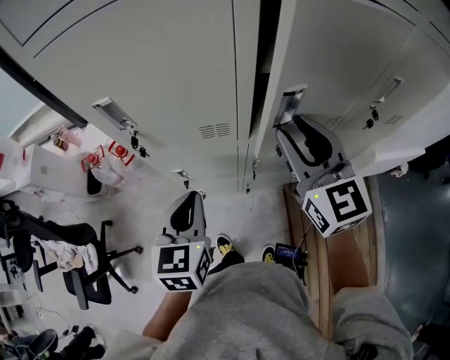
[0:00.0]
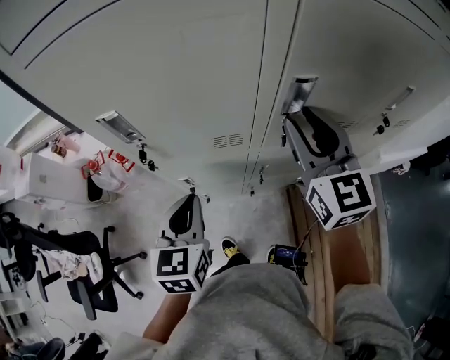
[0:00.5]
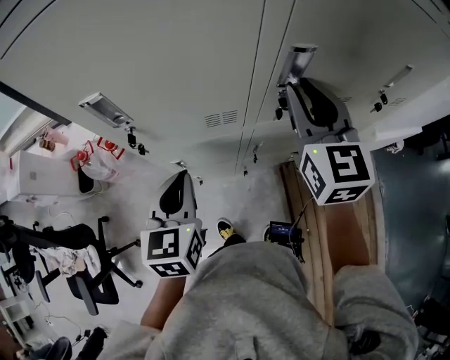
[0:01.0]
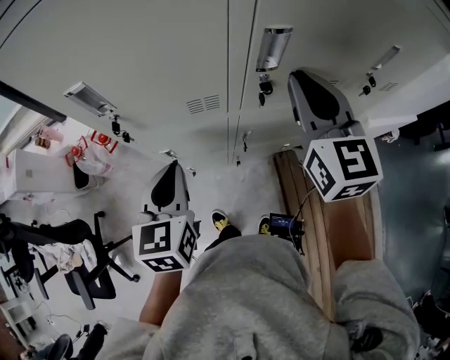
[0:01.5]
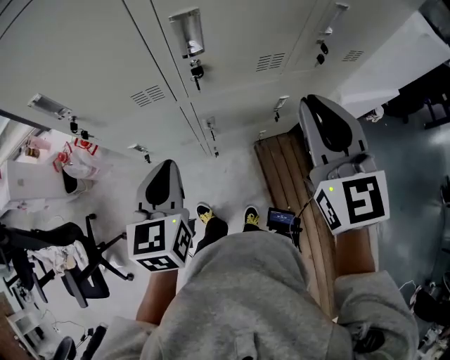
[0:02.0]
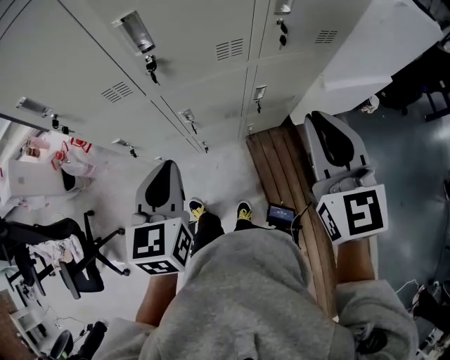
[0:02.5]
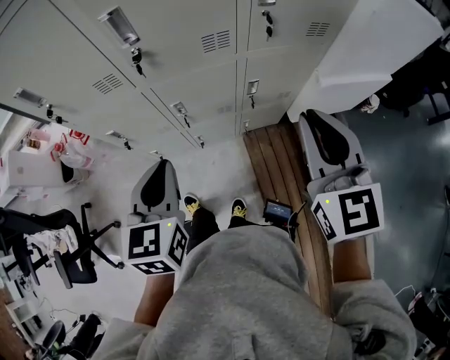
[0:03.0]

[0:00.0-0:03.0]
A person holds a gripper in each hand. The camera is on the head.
0:00.0 to 0:01.5: The right gripper closes up.
0:01.5 to 0:03.0: Both grippers travel together to the right and backward, about 30 cm.

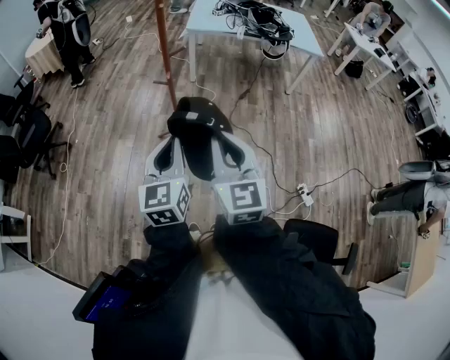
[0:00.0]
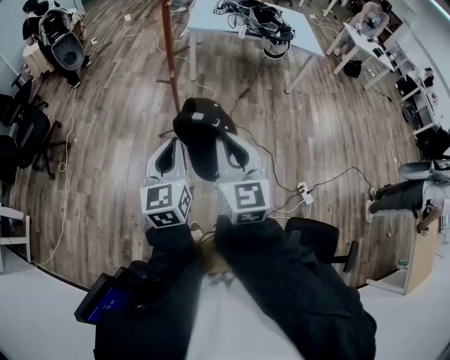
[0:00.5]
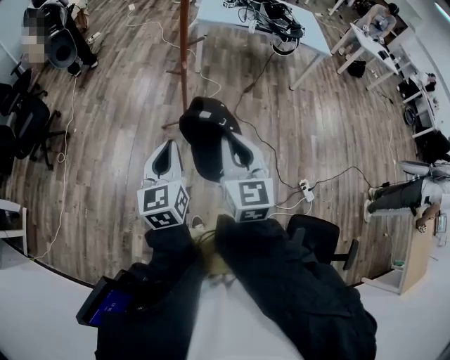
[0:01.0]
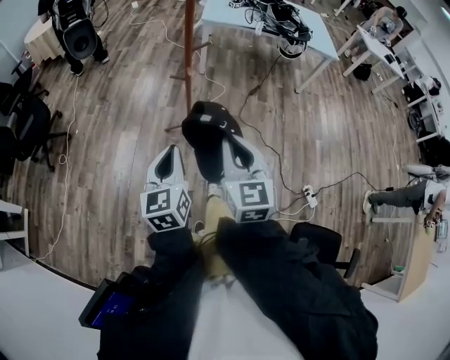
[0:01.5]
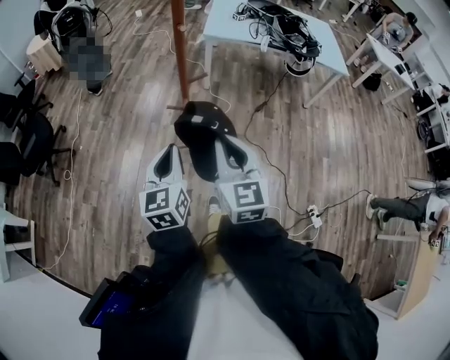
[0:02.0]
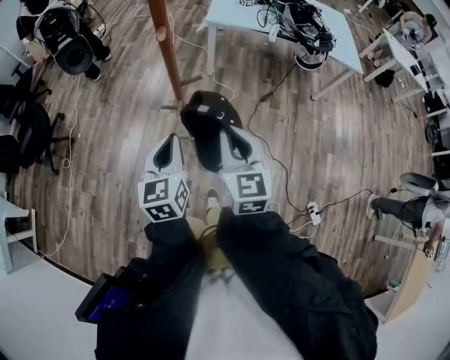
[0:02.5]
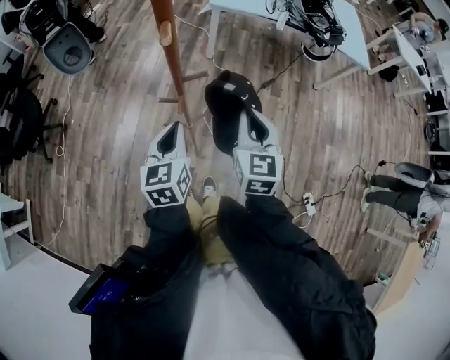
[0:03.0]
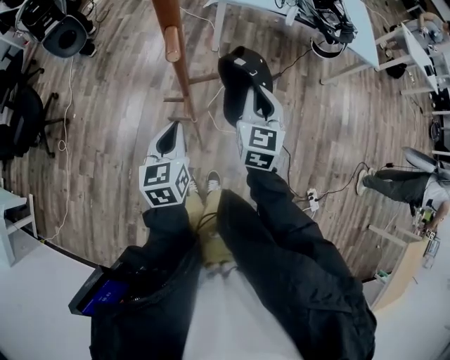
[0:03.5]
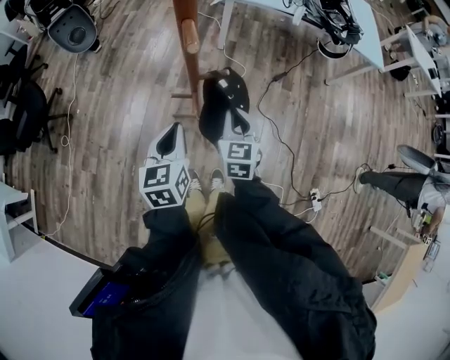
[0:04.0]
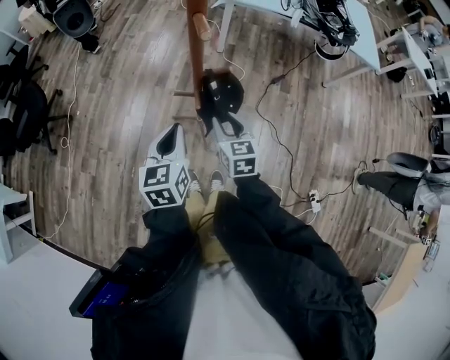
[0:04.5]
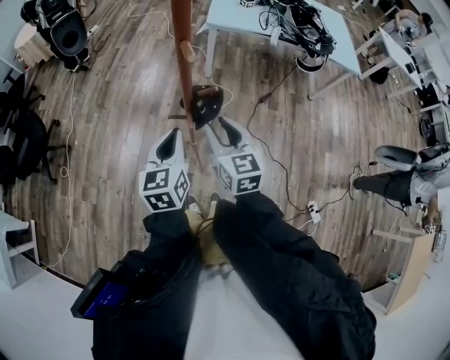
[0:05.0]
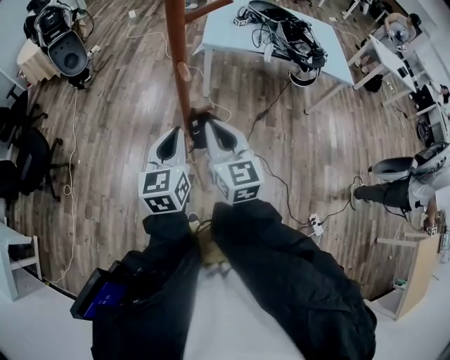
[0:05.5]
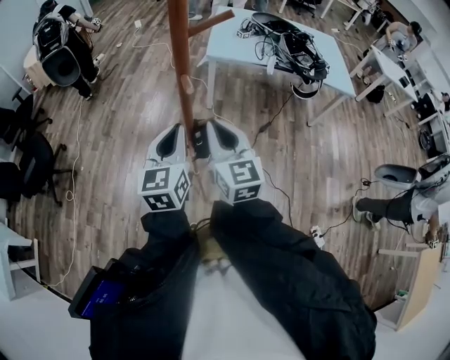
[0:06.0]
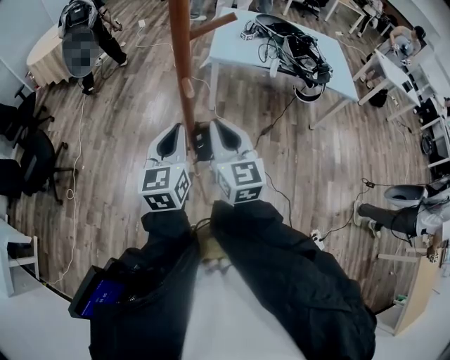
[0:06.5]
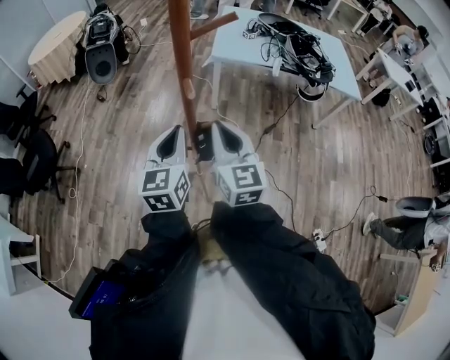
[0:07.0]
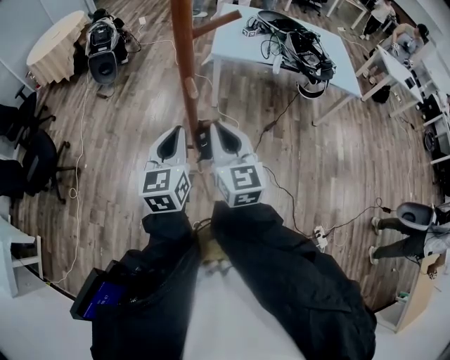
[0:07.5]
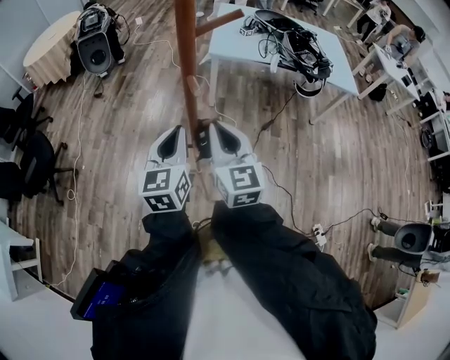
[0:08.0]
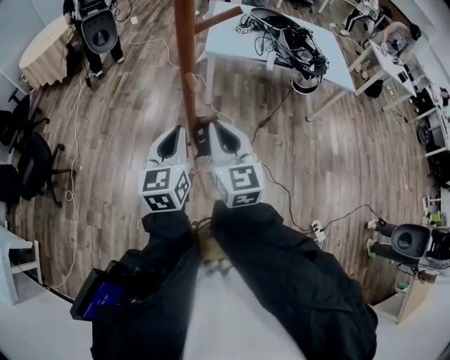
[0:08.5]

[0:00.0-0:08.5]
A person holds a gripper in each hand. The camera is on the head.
0:00.0 to 0:02.0: The grippers both shift forward by some 25 cm.
0:02.0 to 0:04.0: The left gripper heads forward and downward, covering roughly 20 cm, while the right gripper is displaced forward and downward by approximately 25 cm, and swivels about 20 degrees.
0:04.0 to 0:06.5: The grippers both shift upward by approximately 20 cm. The right gripper rotates approximately 30 degrees, and opens and closes again. The left gripper turns by some 20 degrees.
0:06.5 to 0:08.5: The grippers move only a little.

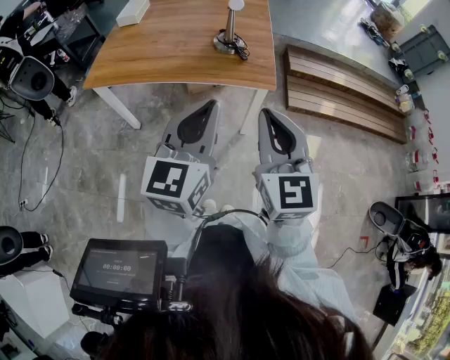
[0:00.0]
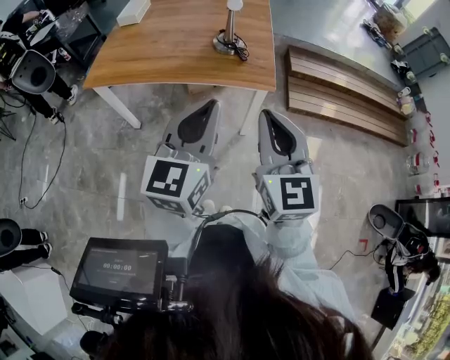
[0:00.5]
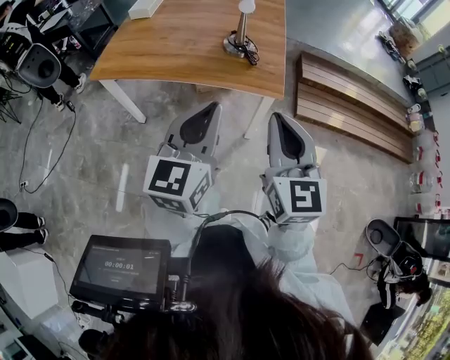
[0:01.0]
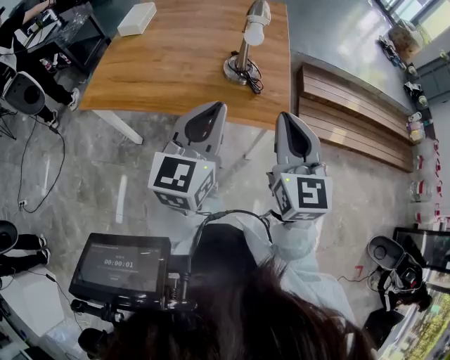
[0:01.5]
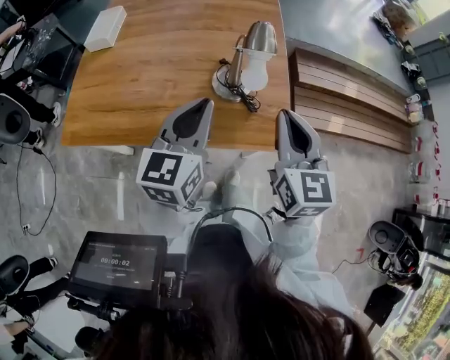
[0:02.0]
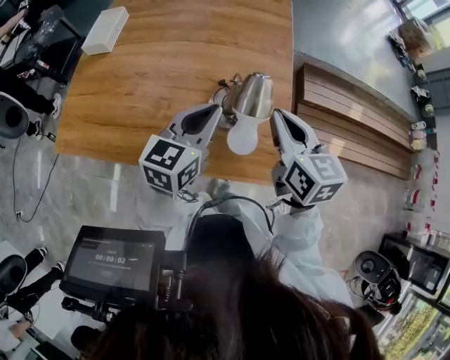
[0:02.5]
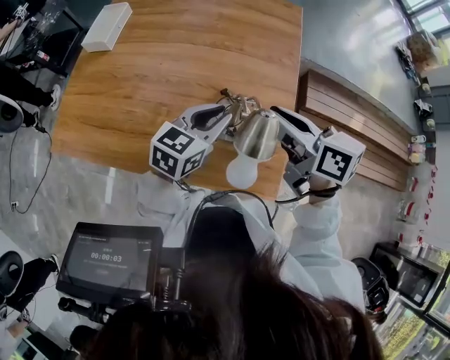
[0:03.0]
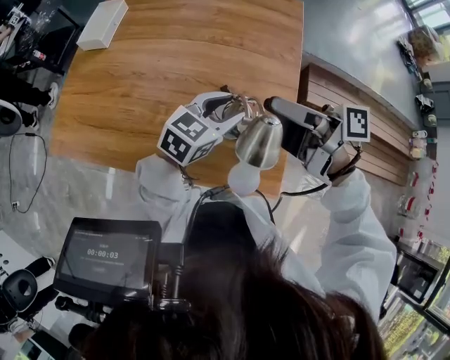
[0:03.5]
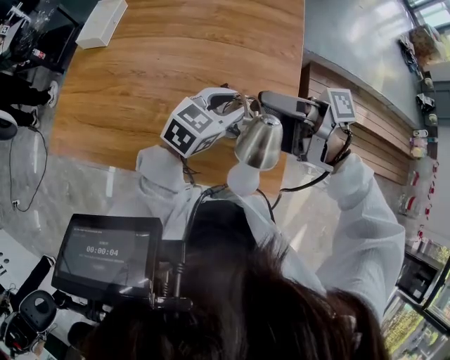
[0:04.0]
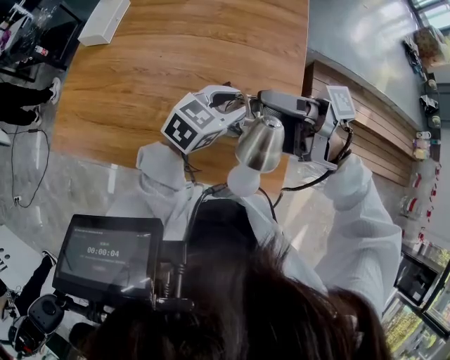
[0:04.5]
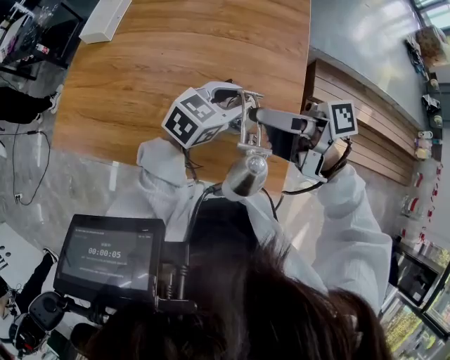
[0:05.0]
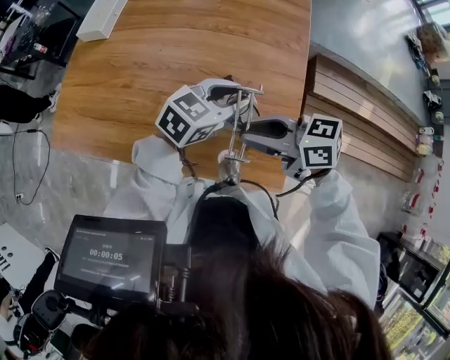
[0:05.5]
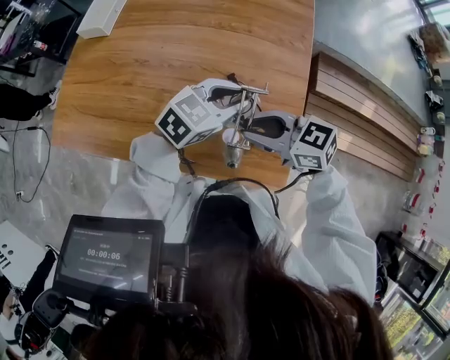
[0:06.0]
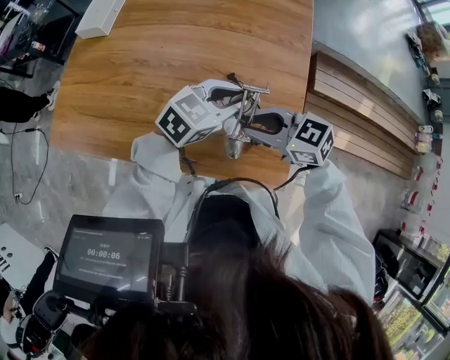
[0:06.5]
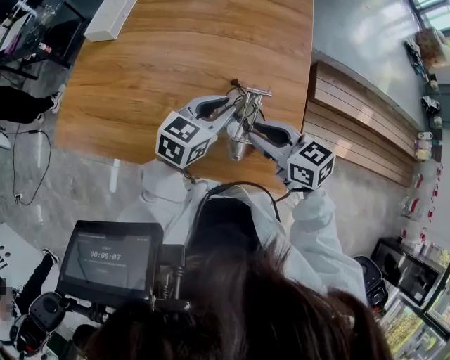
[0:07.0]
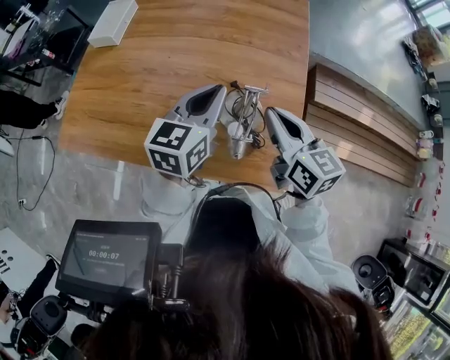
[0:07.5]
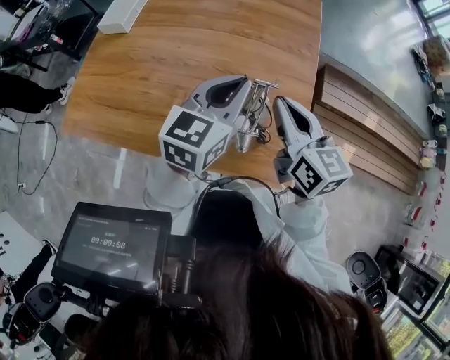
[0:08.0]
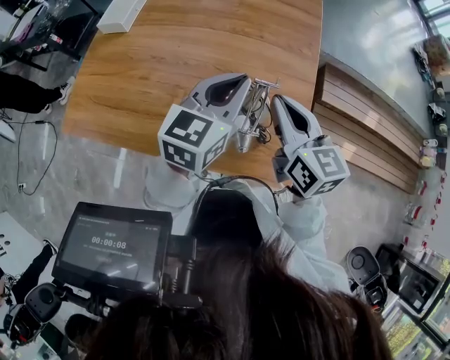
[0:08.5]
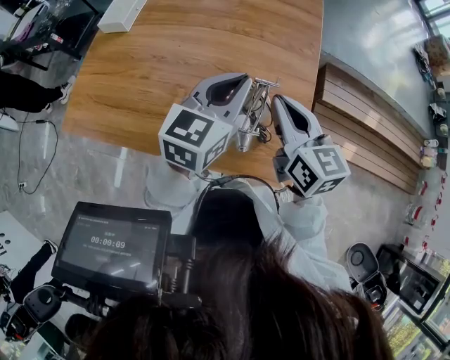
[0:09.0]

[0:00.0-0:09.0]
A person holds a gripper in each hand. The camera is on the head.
0:00.0 to 0:02.0: Both grippers travel together forward, some 40 cm.
0:02.0 to 0:04.5: The right gripper changes place by roughly 20 cm, turns by about 110 degrees, and opens its fingers. The left gripper ends up roughly 25 cm from where it was, changes its angle by about 30 degrees, and opens its fingers.
0:04.5 to 0:07.0: The right gripper shifts about 15 cm downward, and rotates around the line of its fingers by approximately 60 degrees, counterclockwise from behind.
0:07.0 to 0:09.0: The right gripper shifts about 10 cm upward and forward, turns by approximately 30 degrees, and closes up, while the left gripper goes some 10 cm upward.

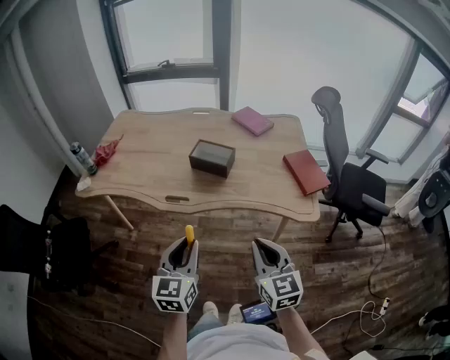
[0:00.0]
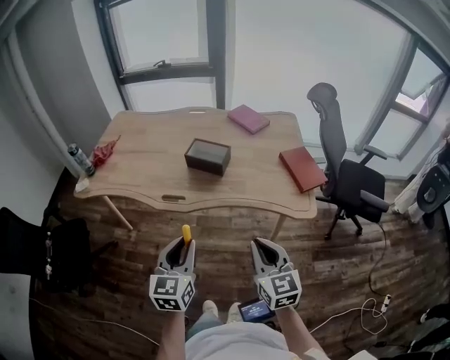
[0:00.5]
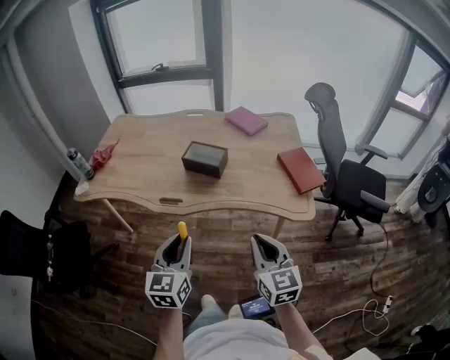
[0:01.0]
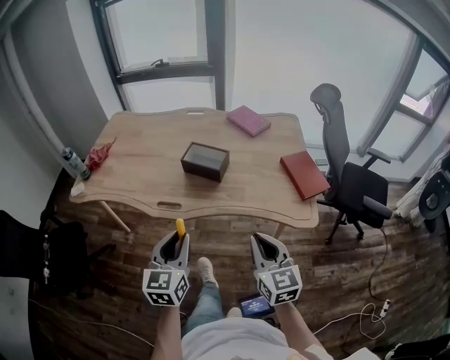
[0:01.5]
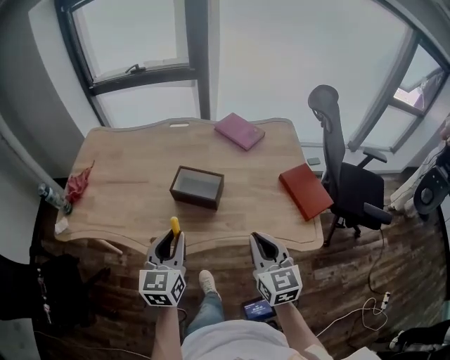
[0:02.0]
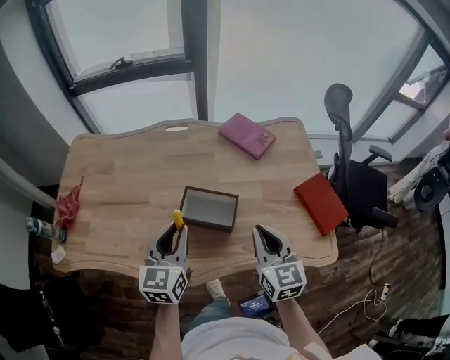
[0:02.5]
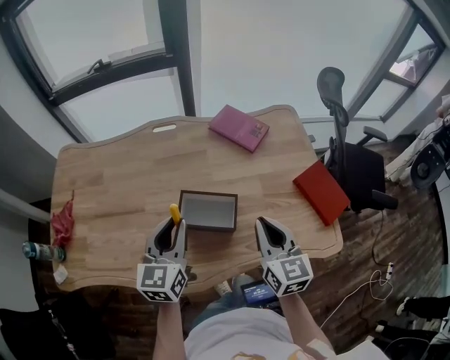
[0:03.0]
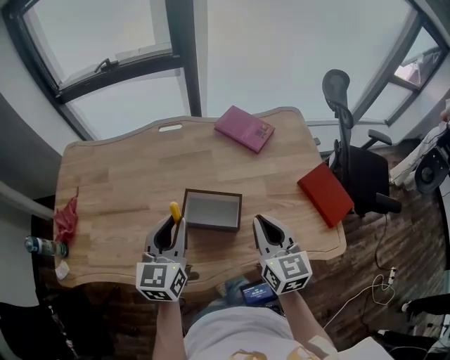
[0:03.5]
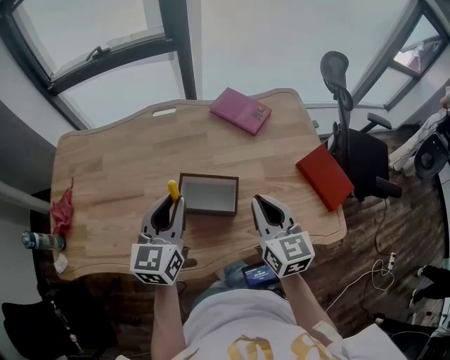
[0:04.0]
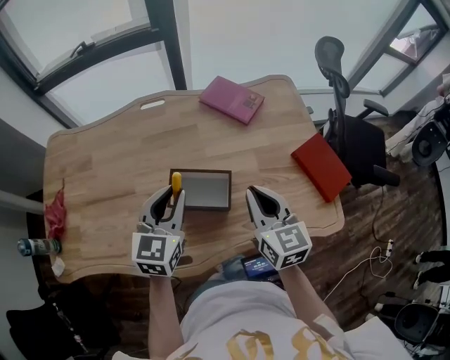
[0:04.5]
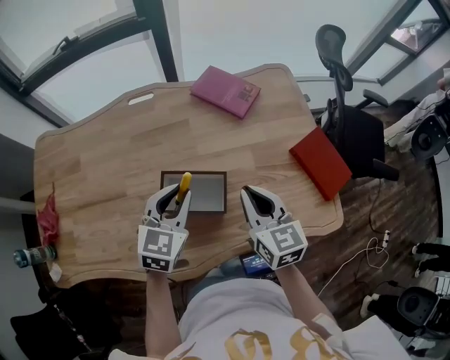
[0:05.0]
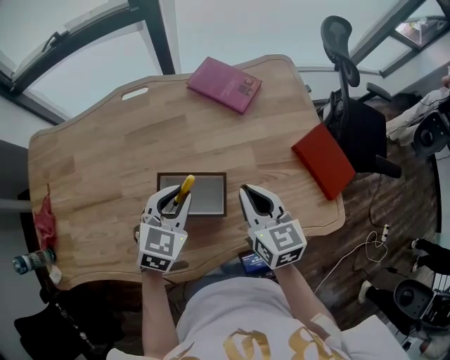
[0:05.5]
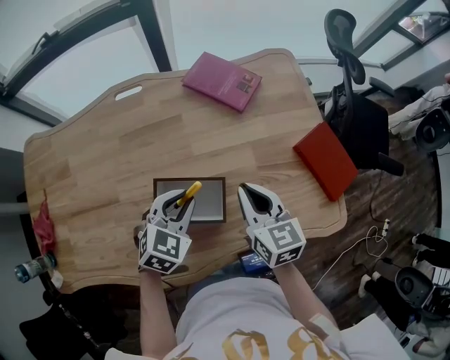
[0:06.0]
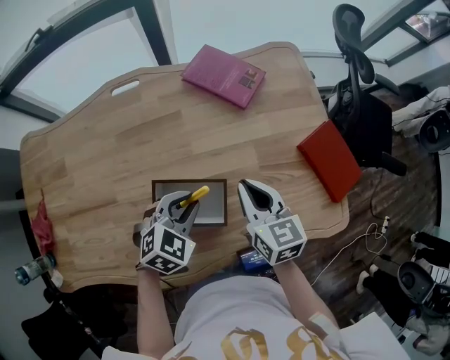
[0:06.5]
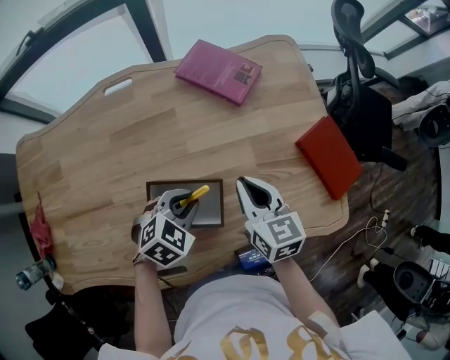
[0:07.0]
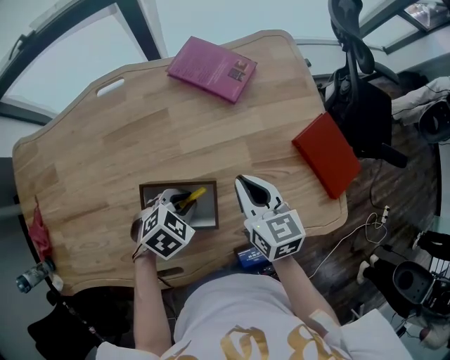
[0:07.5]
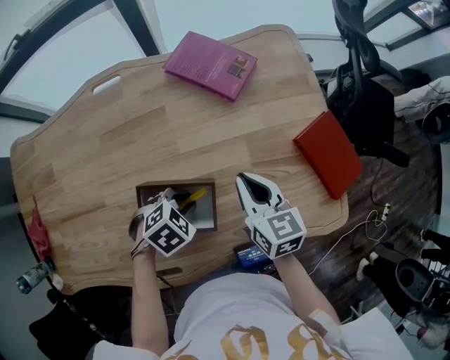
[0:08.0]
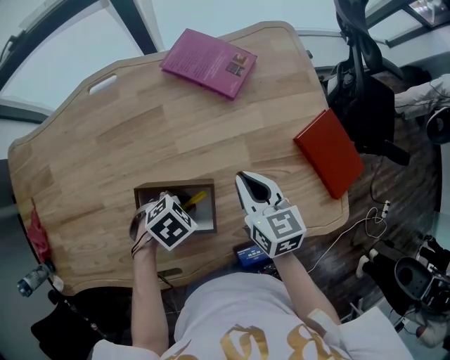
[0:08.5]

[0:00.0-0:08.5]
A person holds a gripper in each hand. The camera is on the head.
0:00.0 to 0:02.0: Both grippers travel together forward, about 20 cm.
0:02.0 to 0:04.0: Both grippers move forward, about 20 cm.
0:04.0 to 0:06.5: The right gripper is displaced downward and forward by approximately 15 cm, while the left gripper moves downward, to the right and forward, approximately 20 cm, and tips its fingers downward by about 40 degrees.
0:06.5 to 0:08.5: The right gripper ends up approximately 5 cm from where it was. Meanwhile the left gripper travels downward by about 10 cm, and swivels about 40 degrees.
